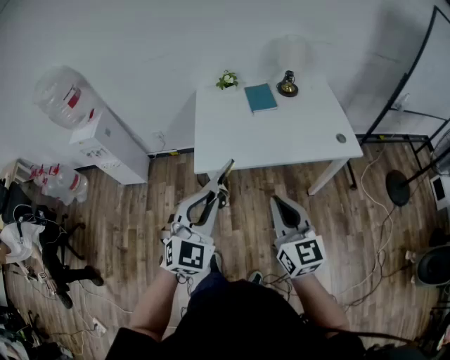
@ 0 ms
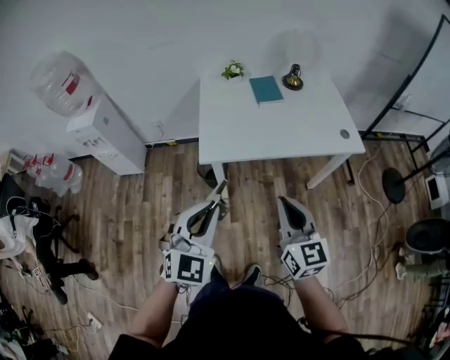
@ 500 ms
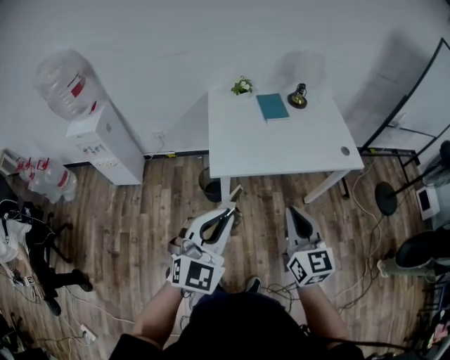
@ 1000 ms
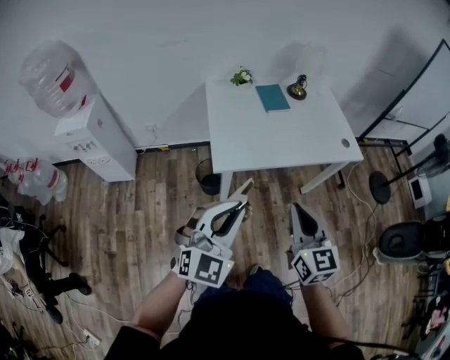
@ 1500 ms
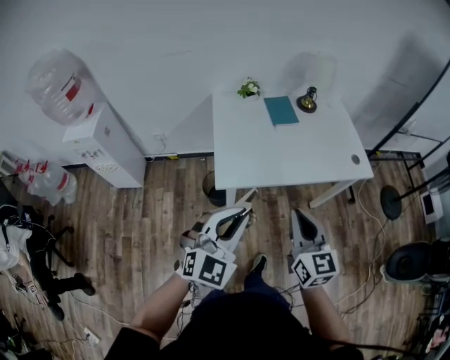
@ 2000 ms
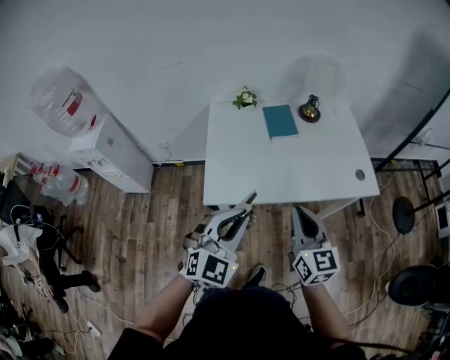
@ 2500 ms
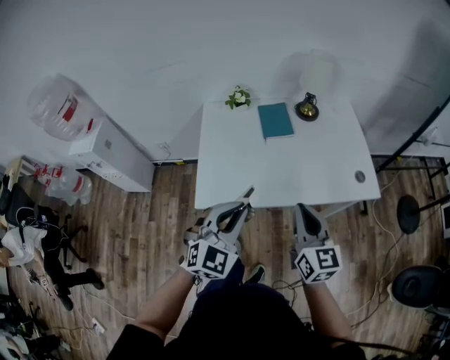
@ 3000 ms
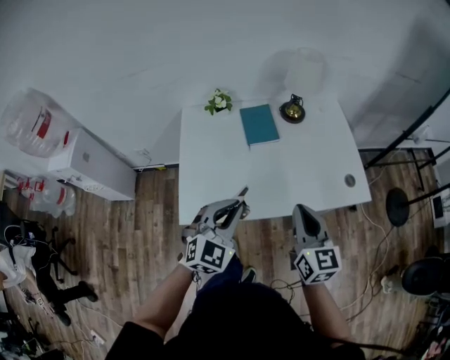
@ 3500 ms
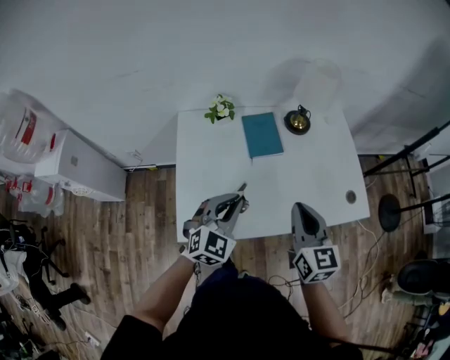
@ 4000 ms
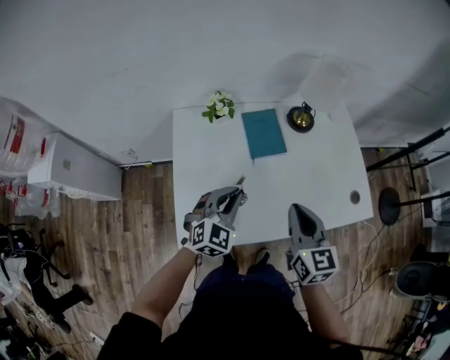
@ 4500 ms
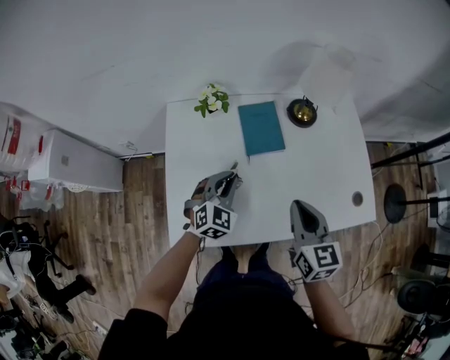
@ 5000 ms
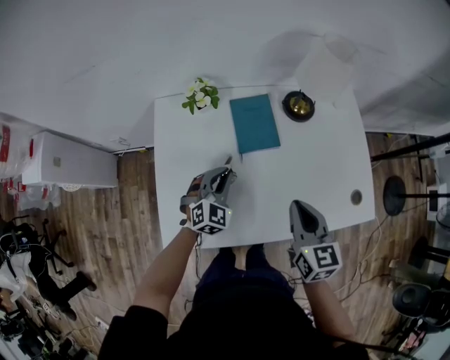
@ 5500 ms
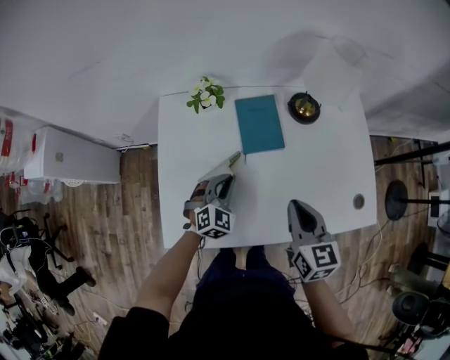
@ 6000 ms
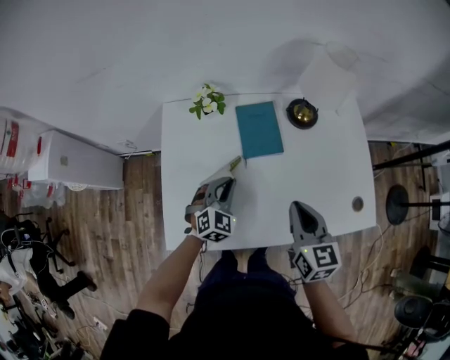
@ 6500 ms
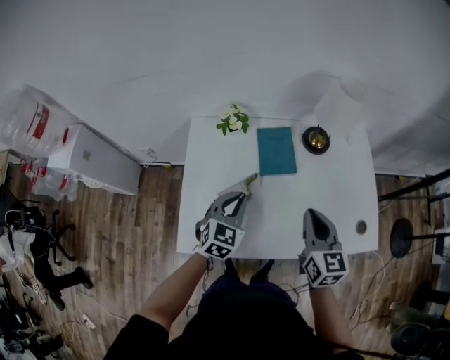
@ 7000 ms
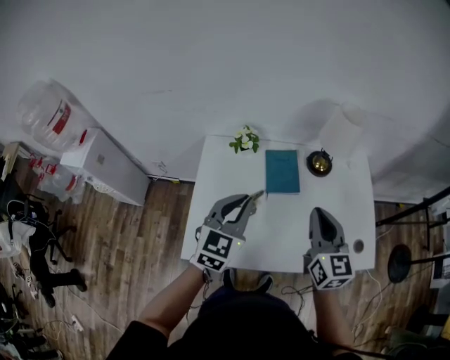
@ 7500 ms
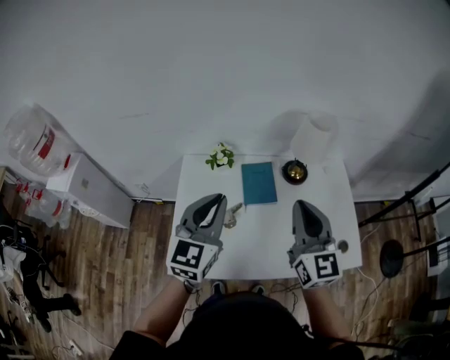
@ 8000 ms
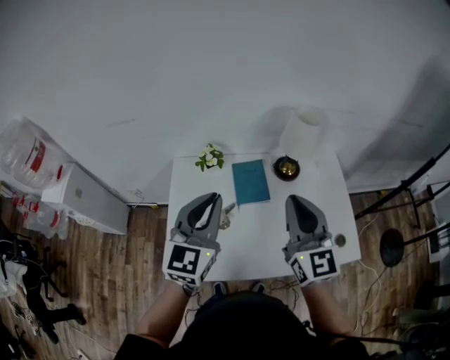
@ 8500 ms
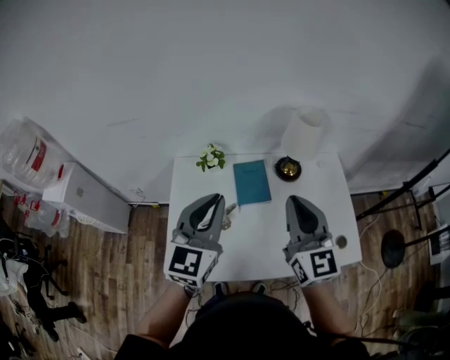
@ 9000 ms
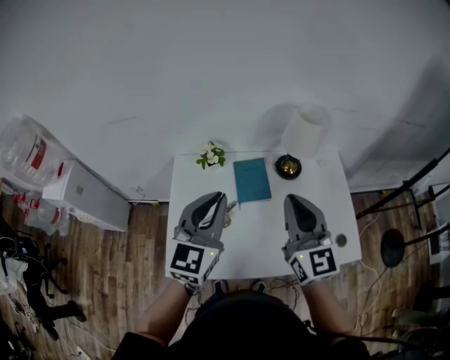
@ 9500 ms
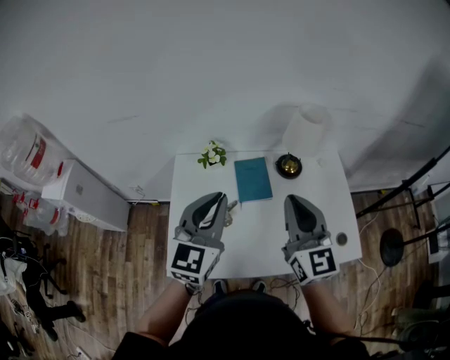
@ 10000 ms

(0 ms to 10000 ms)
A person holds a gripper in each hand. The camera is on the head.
0 ms - 2000 ms: The left gripper shifts about 10 cm to the left. The right gripper travels to the left and forward by roughly 10 cm.
2000 ms - 4000 ms: The two grippers go approximately 35 cm forward.
4000 ms - 6000 ms: The right gripper travels forward and downward by some 15 cm; the left gripper goes some 25 cm downward and forward.
6000 ms - 8000 ms: The right gripper travels upward by roughly 20 cm, and swivels approximately 30 degrees. The left gripper heads upward, covering roughly 35 cm, and angles its fingers upward, by about 30 degrees.
8000 ms - 10000 ms: The grippers move only a little.

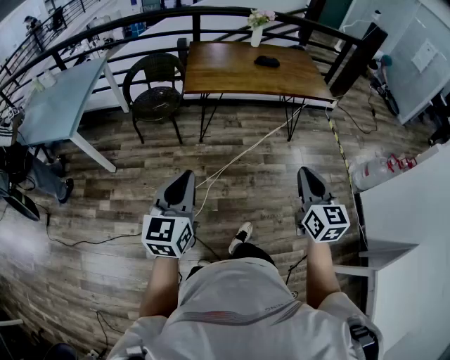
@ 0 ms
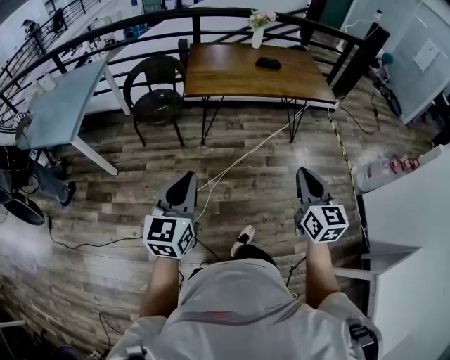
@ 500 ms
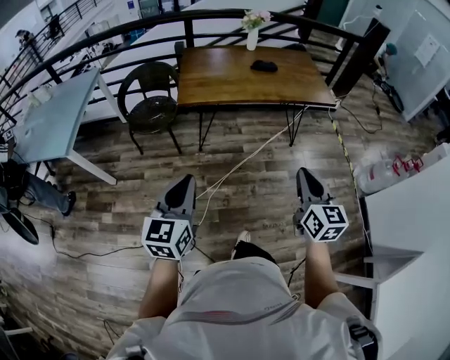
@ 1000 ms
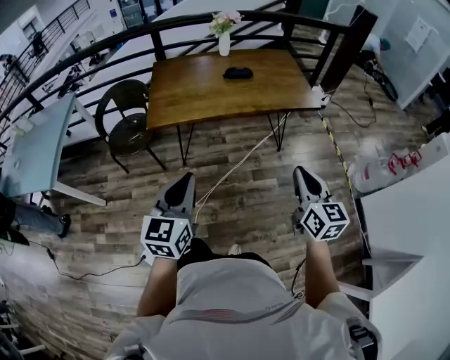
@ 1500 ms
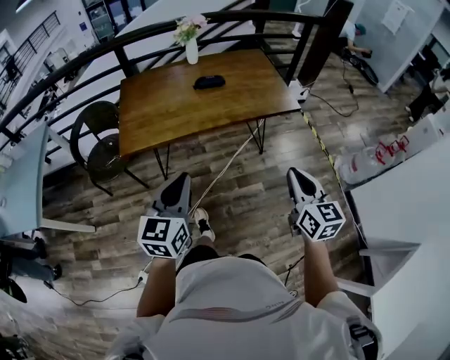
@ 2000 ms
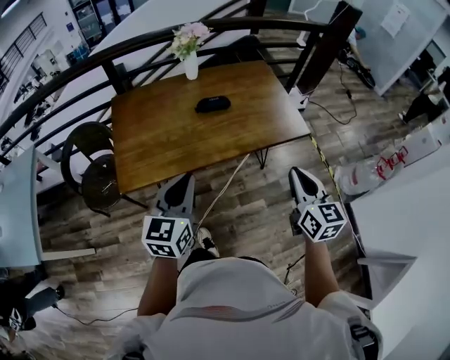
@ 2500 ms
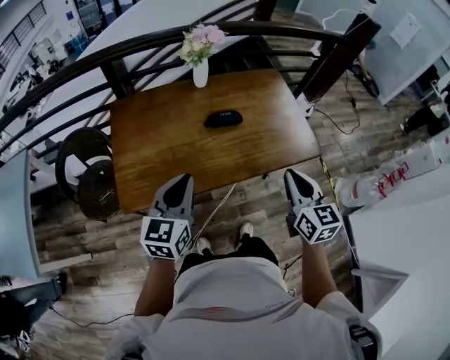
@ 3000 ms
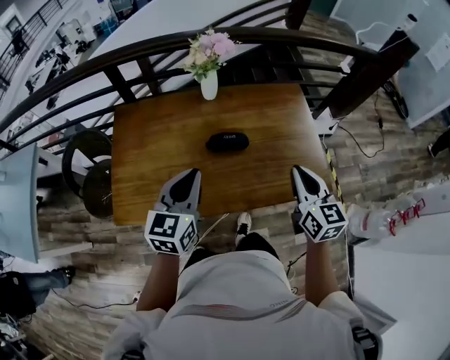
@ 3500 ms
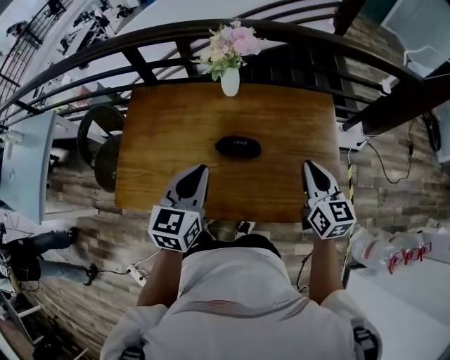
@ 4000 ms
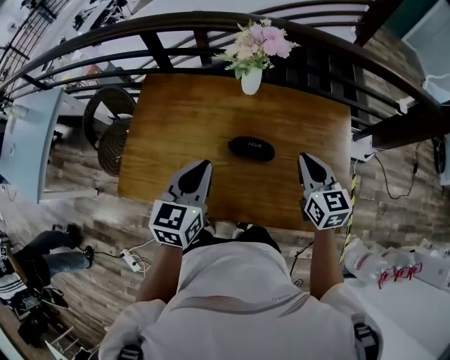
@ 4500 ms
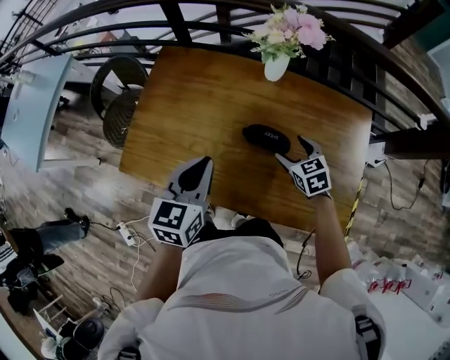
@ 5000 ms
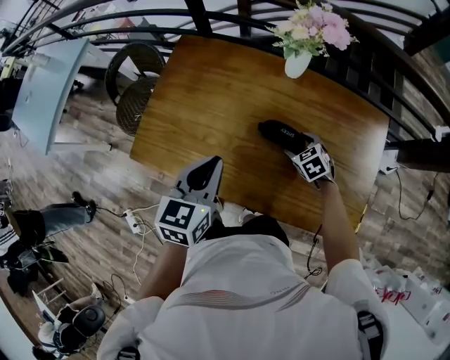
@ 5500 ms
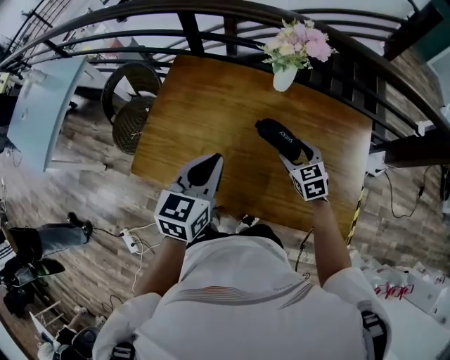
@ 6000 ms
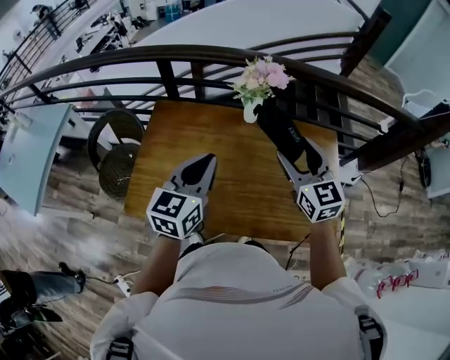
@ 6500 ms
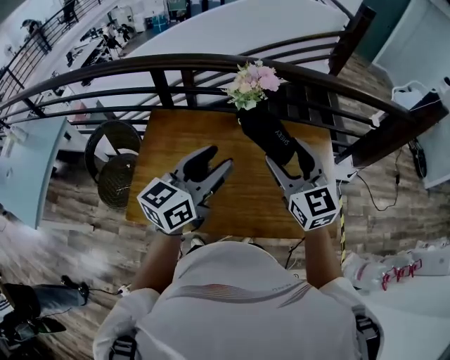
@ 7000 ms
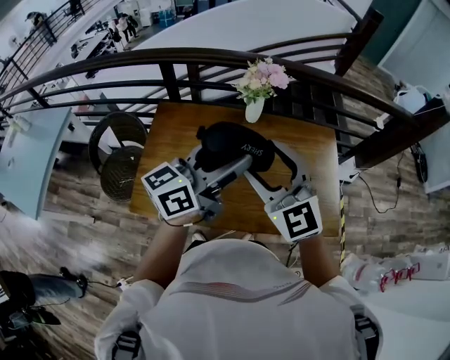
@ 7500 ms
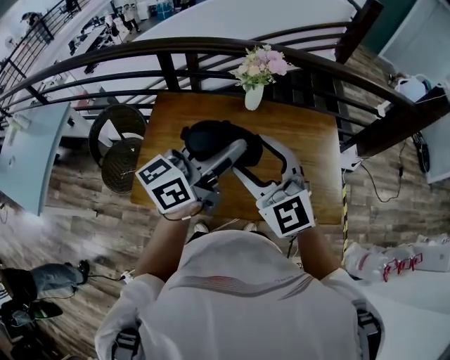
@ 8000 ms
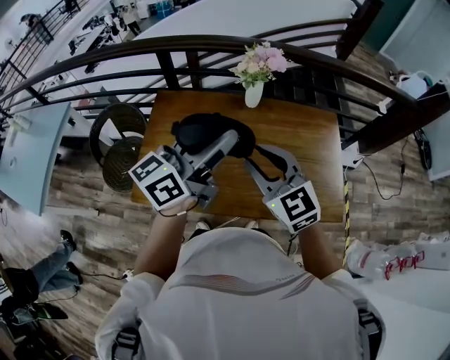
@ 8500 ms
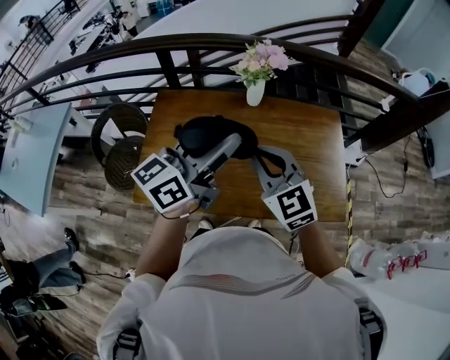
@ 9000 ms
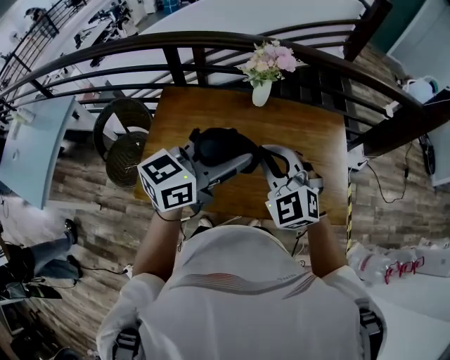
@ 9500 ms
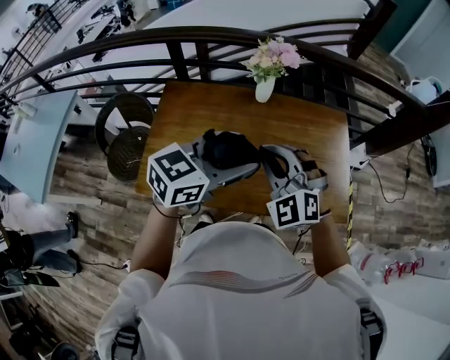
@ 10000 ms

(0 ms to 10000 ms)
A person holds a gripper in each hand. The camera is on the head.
0 ms - 2000 ms: The grippers both shift forward and to the right by about 40 cm.
2000 ms - 4000 ms: Both grippers are carried forward, roughly 60 cm.
4000 ms - 6000 ms: The right gripper travels downward, to the left and forward by approximately 25 cm, rotates about 40 degrees, and opens. The left gripper heads to the left, covering roughly 10 cm.
6000 ms - 8000 ms: The right gripper goes approximately 35 cm upward, backward and to the left, and points its fingers approximately 30 degrees further upward, while the left gripper heads upward, covering approximately 20 cm, tilts its fingers approximately 40 degrees upward, and opens up.
8000 ms - 10000 ms: The grippers both shift downward by some 5 cm. The right gripper changes its angle by approximately 30 degrees, and closes. Meanwhile the left gripper changes its angle by roughly 30 degrees.

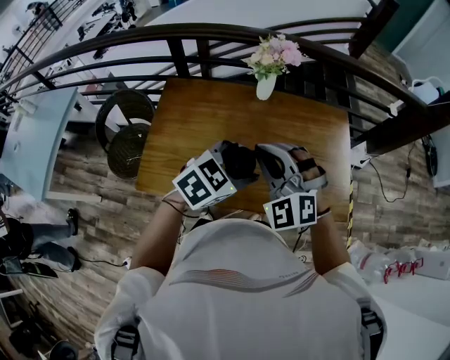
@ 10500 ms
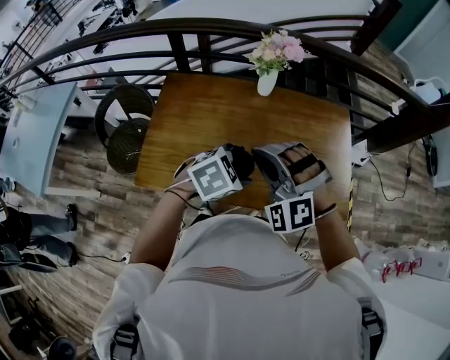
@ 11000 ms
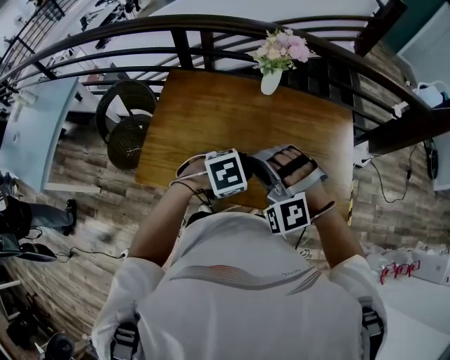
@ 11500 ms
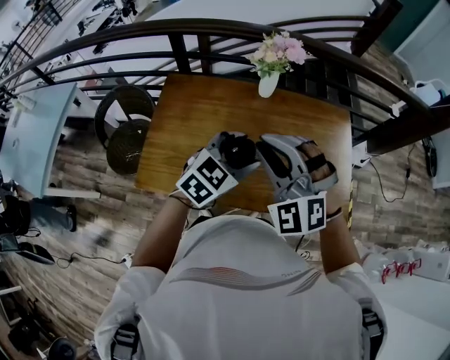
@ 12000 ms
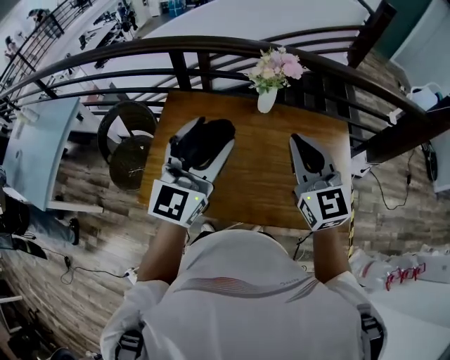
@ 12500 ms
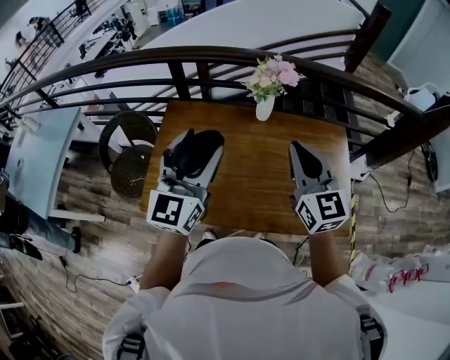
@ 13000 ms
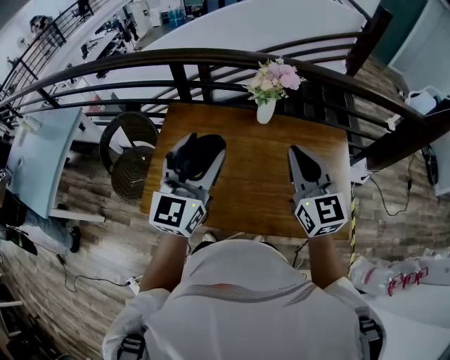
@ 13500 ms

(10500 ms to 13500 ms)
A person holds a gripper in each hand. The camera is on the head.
10500 ms - 12000 ms: The left gripper moves roughly 10 cm downward and comes back.
12000 ms - 13500 ms: The right gripper heads to the right and forward, covering about 10 cm, and rotates around the line of its fingers by about 60 degrees, clockwise from behind, while the left gripper travels upward and to the left by roughly 15 cm, and tilts its fingers some 30 degrees upward.

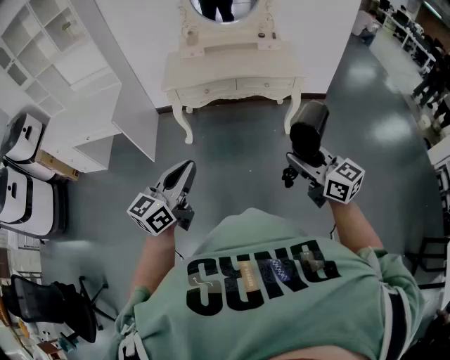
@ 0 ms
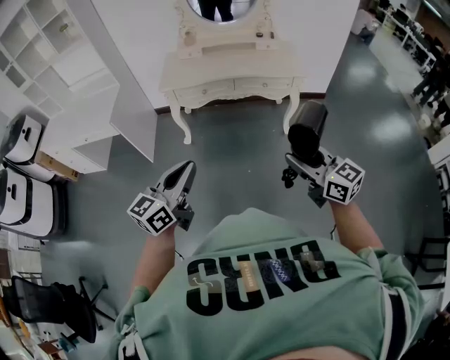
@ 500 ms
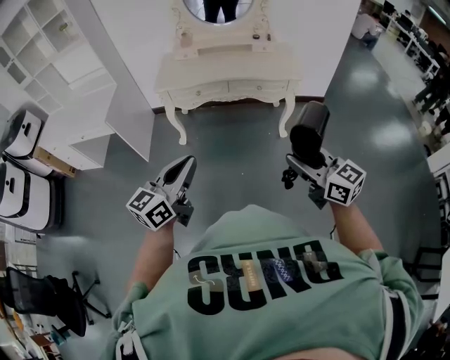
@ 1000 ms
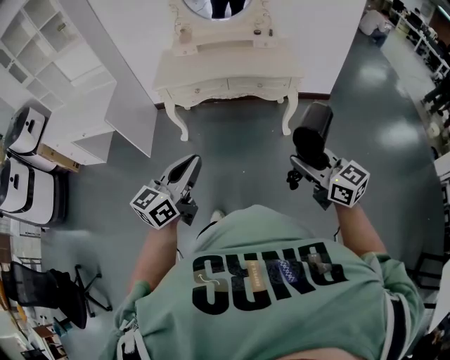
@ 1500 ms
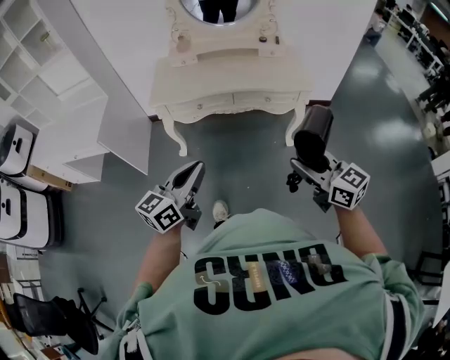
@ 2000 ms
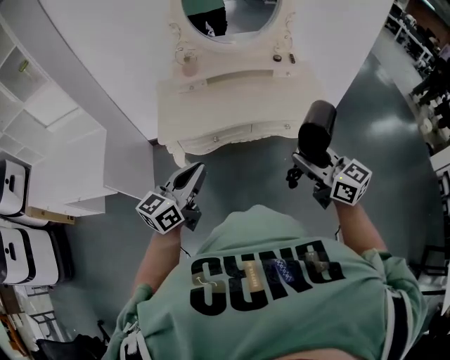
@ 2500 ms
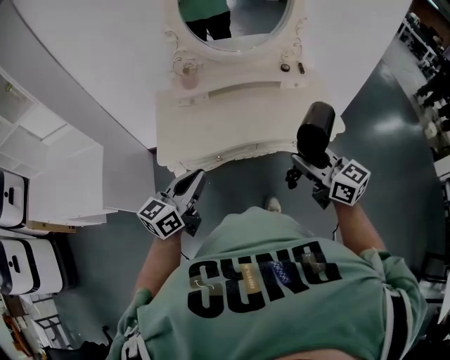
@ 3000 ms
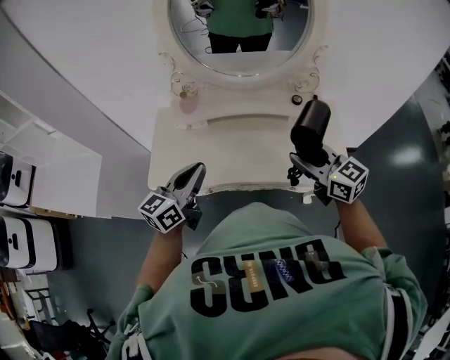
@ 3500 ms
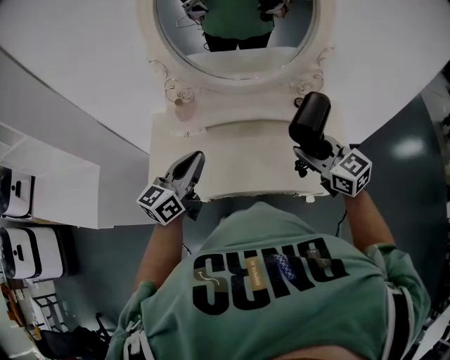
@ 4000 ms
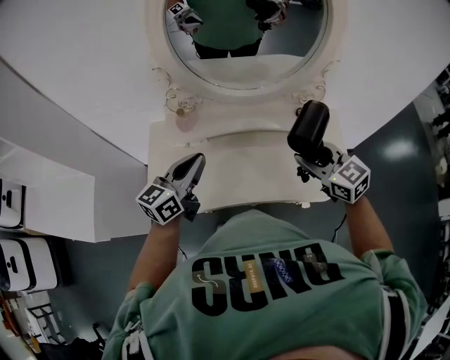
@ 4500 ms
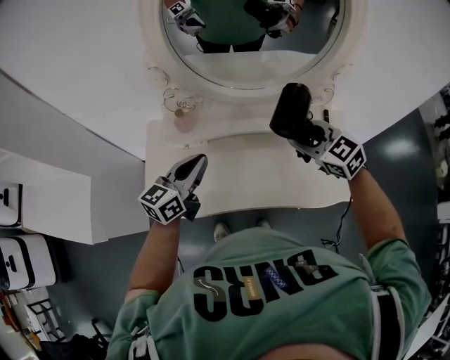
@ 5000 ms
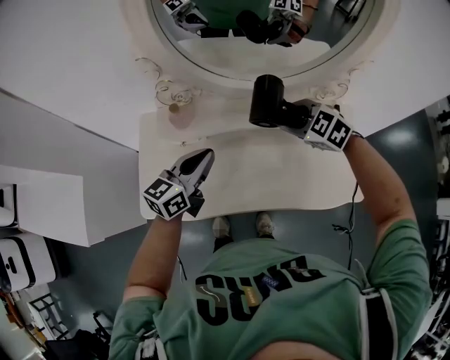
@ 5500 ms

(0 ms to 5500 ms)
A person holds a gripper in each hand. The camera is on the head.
0 ms - 2000 ms: Both grippers move forward, about 20 cm.
2000 ms - 3500 ms: The two grippers travel together, forward, approximately 50 cm.
3500 ms - 5500 ms: The grippers both shift forward and downward by roughly 25 cm. The right gripper tilts its fingers about 40 degrees downward.
